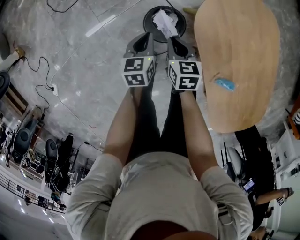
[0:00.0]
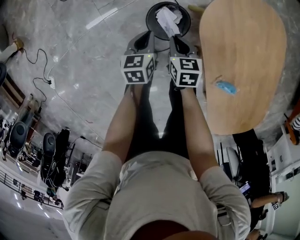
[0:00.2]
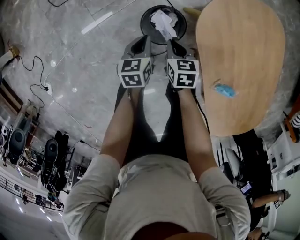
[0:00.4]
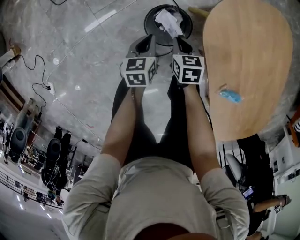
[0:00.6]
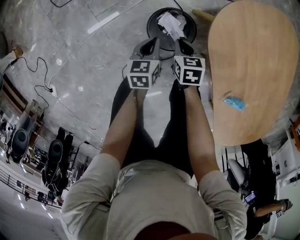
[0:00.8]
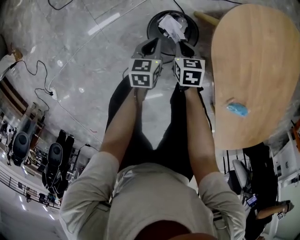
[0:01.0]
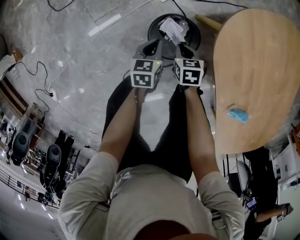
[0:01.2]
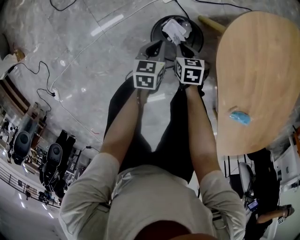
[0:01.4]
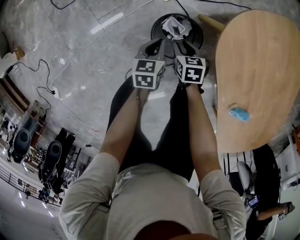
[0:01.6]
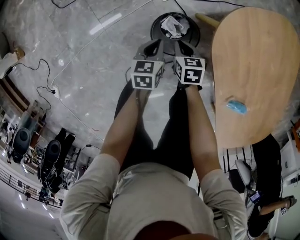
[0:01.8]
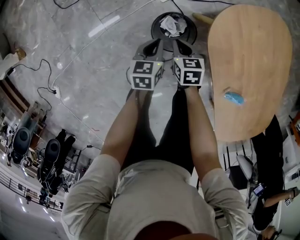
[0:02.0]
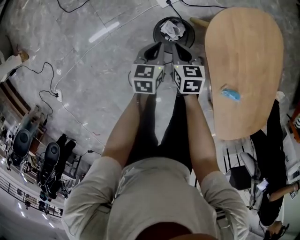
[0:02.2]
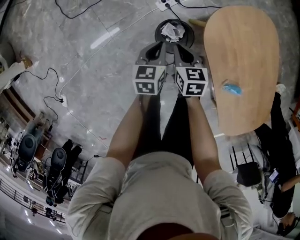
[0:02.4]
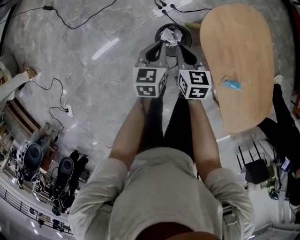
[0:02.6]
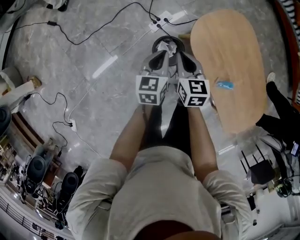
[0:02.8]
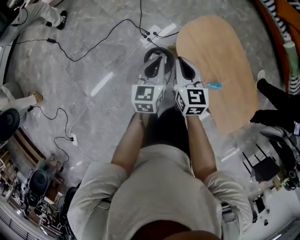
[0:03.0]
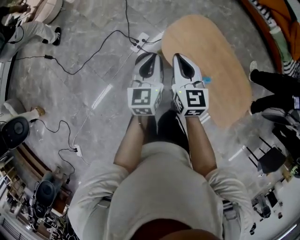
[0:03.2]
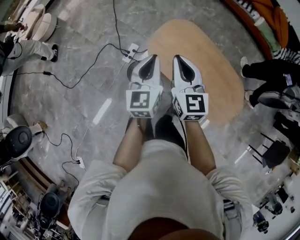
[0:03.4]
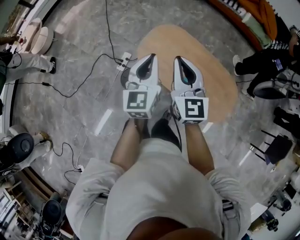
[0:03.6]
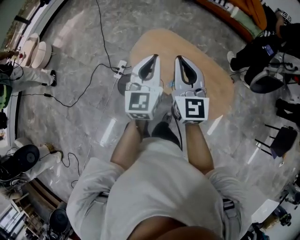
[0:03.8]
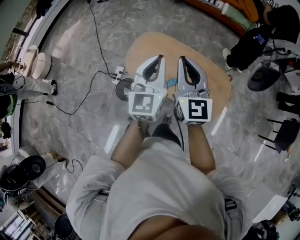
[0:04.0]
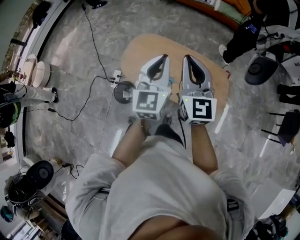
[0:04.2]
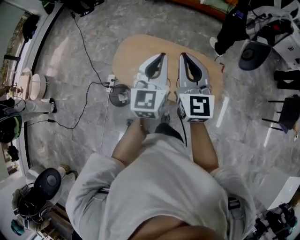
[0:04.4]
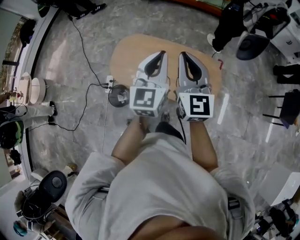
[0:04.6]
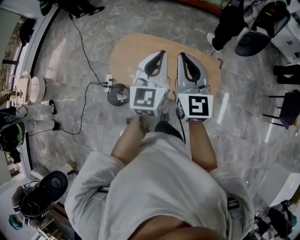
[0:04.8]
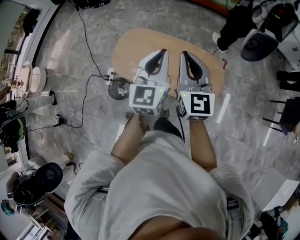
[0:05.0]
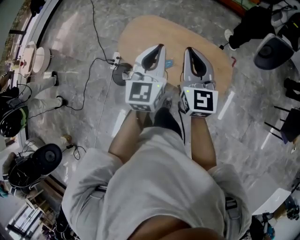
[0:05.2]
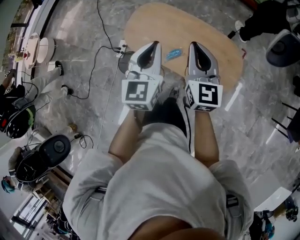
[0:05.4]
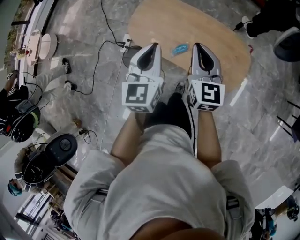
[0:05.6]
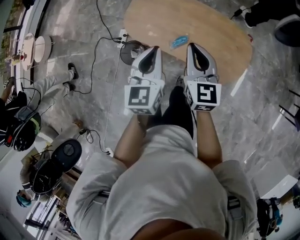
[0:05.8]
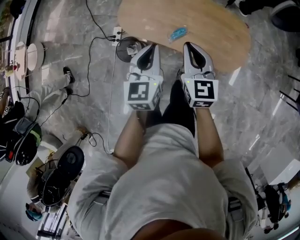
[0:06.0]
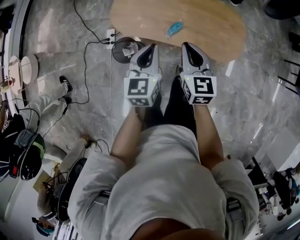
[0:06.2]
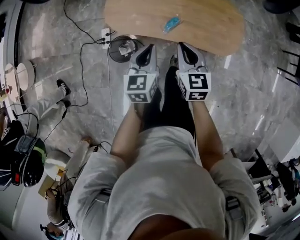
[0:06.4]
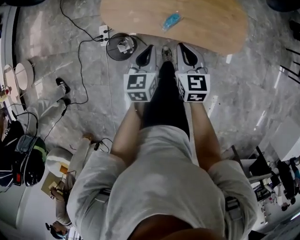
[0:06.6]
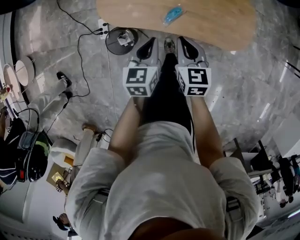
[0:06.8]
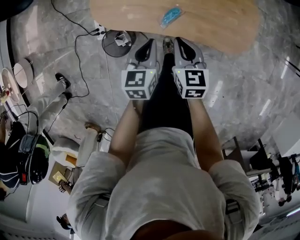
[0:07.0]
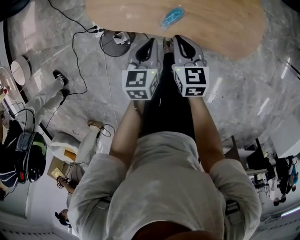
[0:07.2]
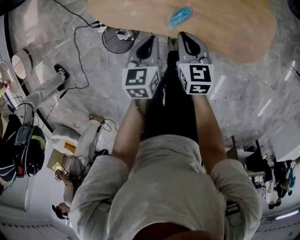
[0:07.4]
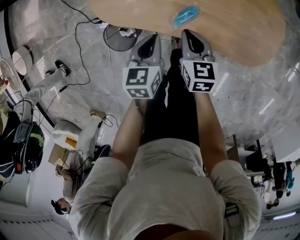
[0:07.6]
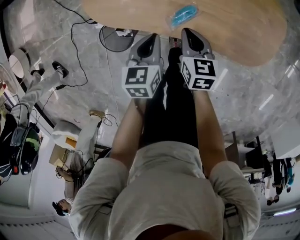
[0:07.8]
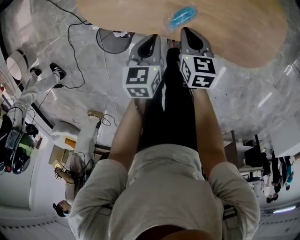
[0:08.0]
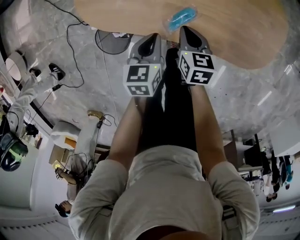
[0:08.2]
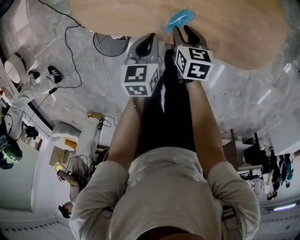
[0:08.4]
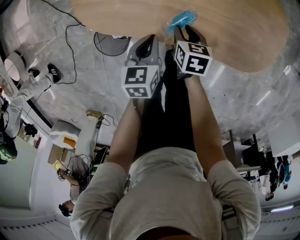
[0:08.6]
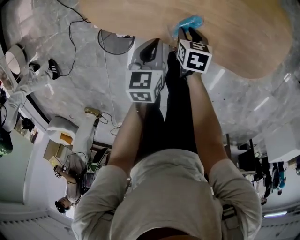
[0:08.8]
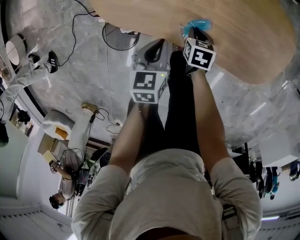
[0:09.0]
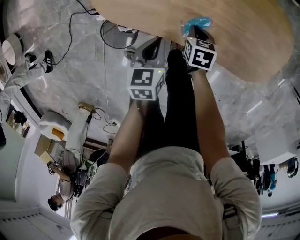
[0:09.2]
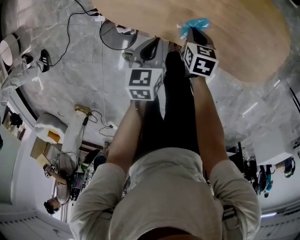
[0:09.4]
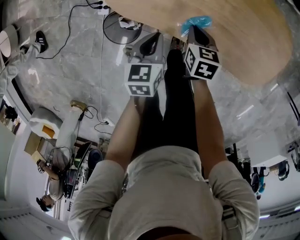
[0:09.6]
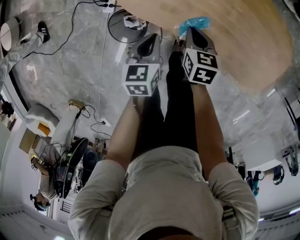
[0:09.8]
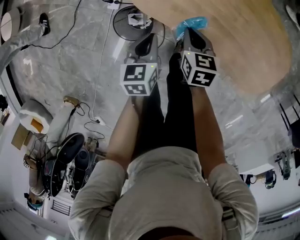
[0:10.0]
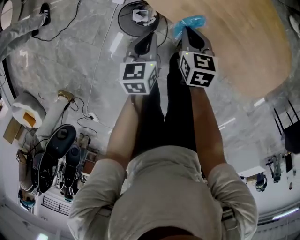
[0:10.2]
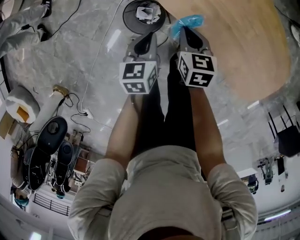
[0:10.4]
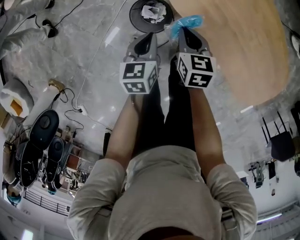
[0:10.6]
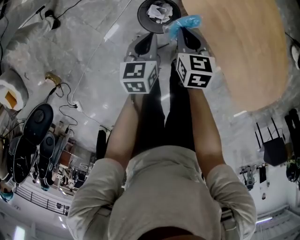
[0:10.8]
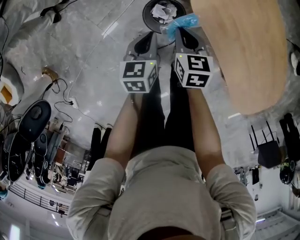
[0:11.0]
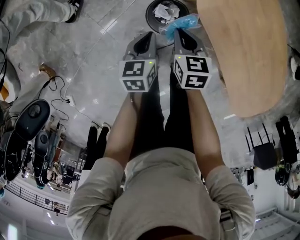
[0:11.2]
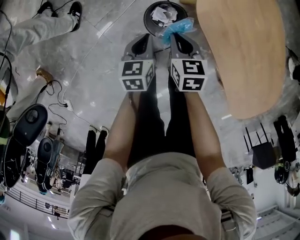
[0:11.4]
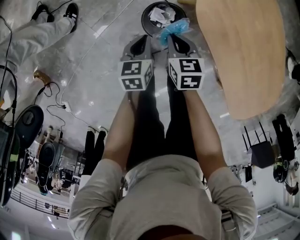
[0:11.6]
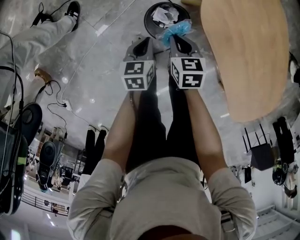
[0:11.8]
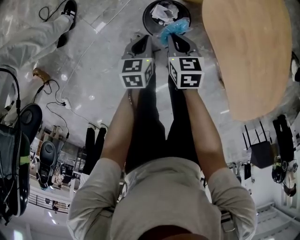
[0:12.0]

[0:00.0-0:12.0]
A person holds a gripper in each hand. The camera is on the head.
0:00.0 to 0:01.6: The grippers both shift downward by about 20 cm. The right gripper opens up.
0:01.6 to 0:03.0: Both grippers move upward, roughly 50 cm. The left gripper swivels some 30 degrees. Meanwhile the right gripper points its fingers approximately 30 degrees further upward, and closes up.
0:03.0 to 0:04.4: The two grippers travel together, roughly 50 cm. The right gripper swivels roughly 50 degrees, while the left gripper rotates approximately 40 degrees.
0:04.4 to 0:06.0: Both grippers move downward and to the left, approximately 25 cm. The right gripper swivels about 20 degrees, while the left gripper changes its angle by approximately 20 degrees.
0:06.0 to 0:07.6: The grippers both shift downward by approximately 30 cm. The left gripper swivels about 30 degrees. The right gripper turns by some 30 degrees.
0:07.6 to 0:09.0: The left gripper shifts approximately 5 cm downward. Meanwhile the right gripper heads downward, covering roughly 15 cm, swivels roughly 30 degrees, and opens, then closes once more.
0:09.0 to 0:10.4: The right gripper goes some 25 cm to the left and upward, and changes its angle by about 30 degrees. Meanwhile the left gripper goes roughly 20 cm to the left, and swivels approximately 30 degrees.
0:10.4 to 0:12.0: The two grippers go roughly 20 cm to the left and downward. The right gripper swivels approximately 20 degrees.

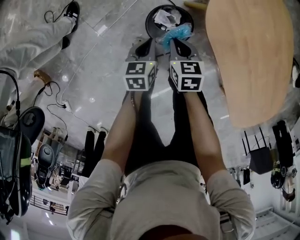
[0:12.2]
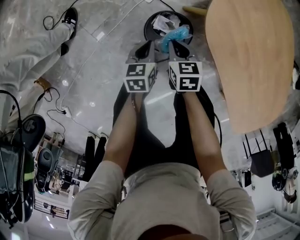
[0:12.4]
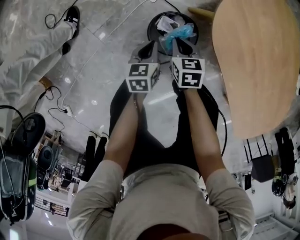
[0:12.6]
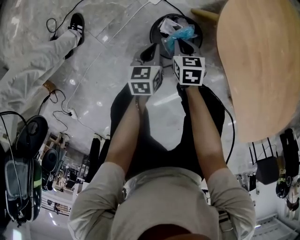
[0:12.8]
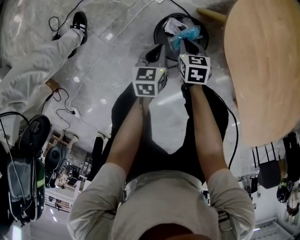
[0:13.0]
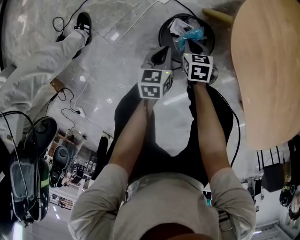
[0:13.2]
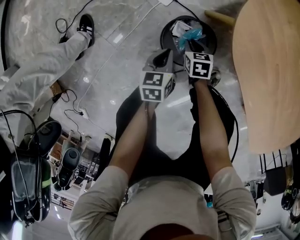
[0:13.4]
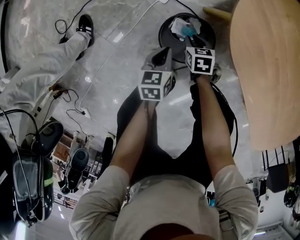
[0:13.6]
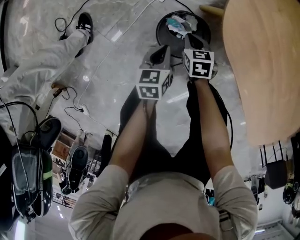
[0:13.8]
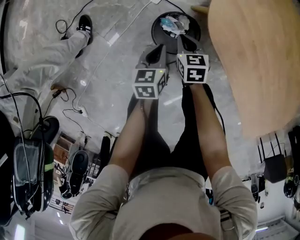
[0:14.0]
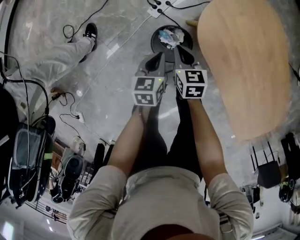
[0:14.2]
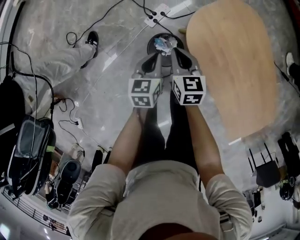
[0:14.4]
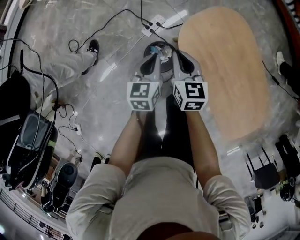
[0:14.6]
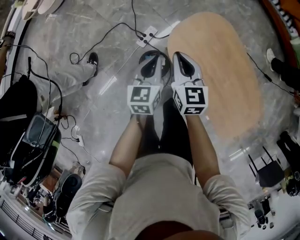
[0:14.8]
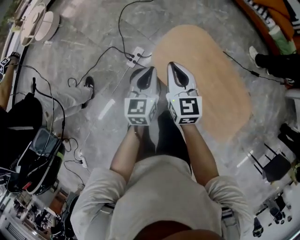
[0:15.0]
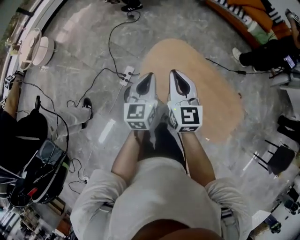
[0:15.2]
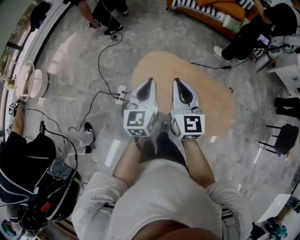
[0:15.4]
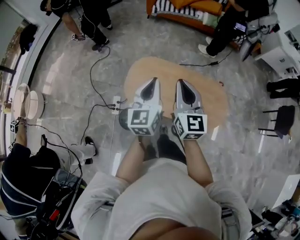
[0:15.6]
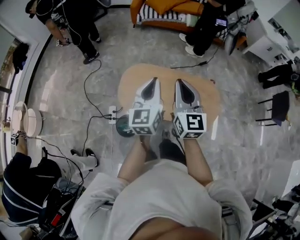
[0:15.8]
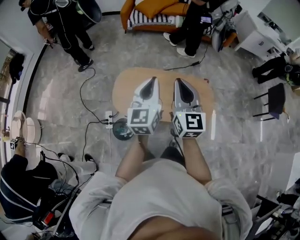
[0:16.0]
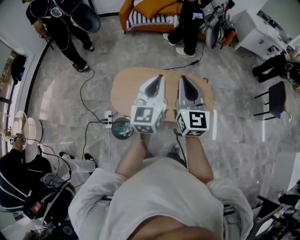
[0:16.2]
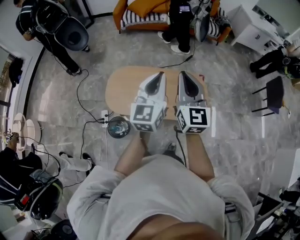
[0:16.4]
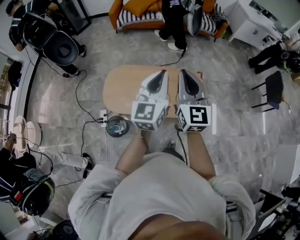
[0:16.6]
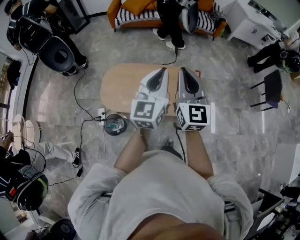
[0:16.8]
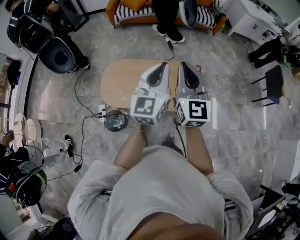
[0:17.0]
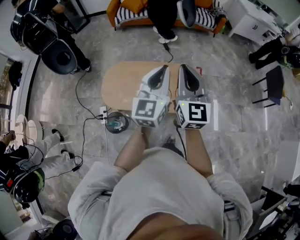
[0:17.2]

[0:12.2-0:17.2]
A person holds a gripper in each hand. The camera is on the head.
0:12.2 to 0:13.8: The right gripper shifts roughly 15 cm downward. The left gripper is displaced downward by some 5 cm.
0:13.8 to 0:15.6: The grippers both shift upward by roughly 80 cm. The right gripper tips its fingers upward by about 50 degrees, while the left gripper angles its fingers upward, by approximately 50 degrees.
0:15.6 to 0:17.2: Both grippers move to the right, about 30 cm. The left gripper swivels some 20 degrees.

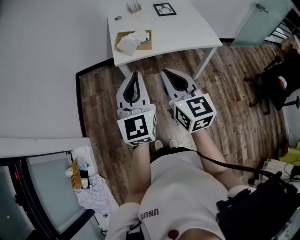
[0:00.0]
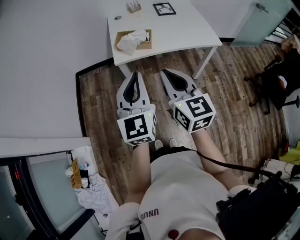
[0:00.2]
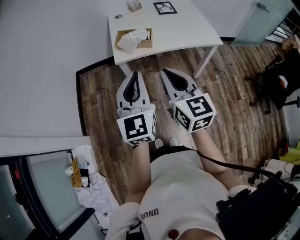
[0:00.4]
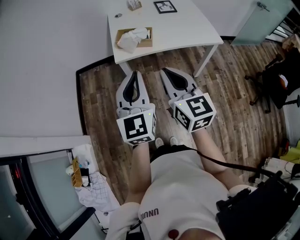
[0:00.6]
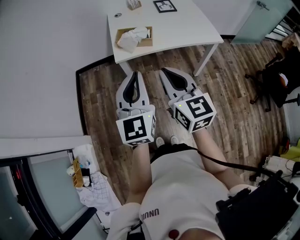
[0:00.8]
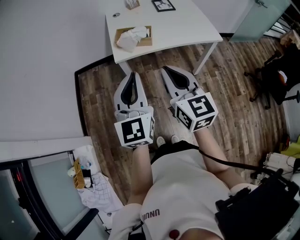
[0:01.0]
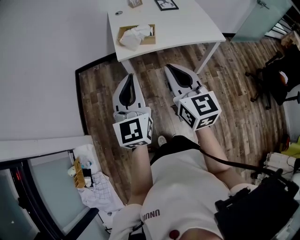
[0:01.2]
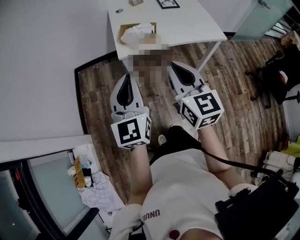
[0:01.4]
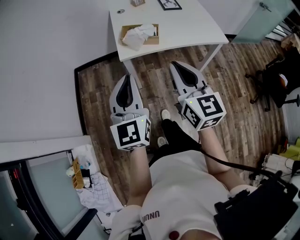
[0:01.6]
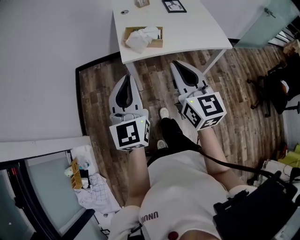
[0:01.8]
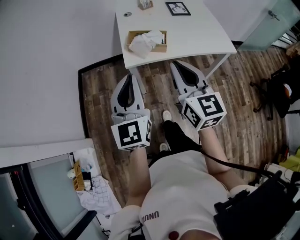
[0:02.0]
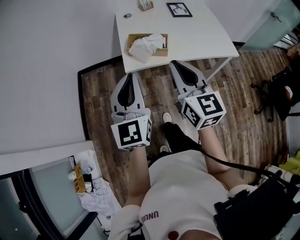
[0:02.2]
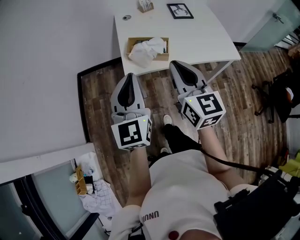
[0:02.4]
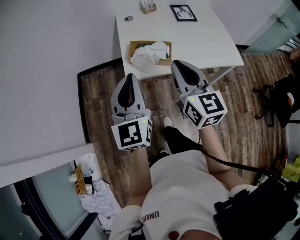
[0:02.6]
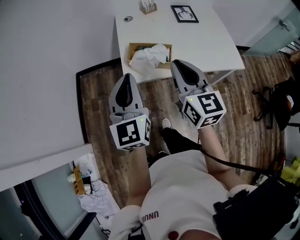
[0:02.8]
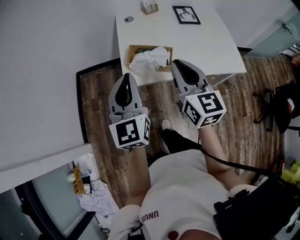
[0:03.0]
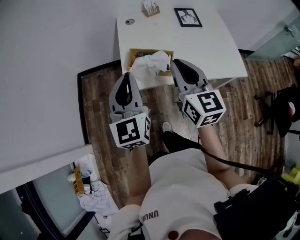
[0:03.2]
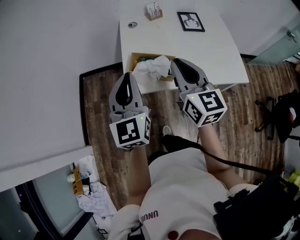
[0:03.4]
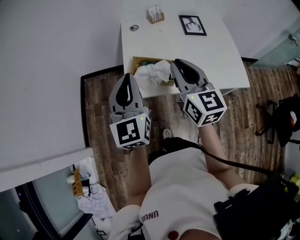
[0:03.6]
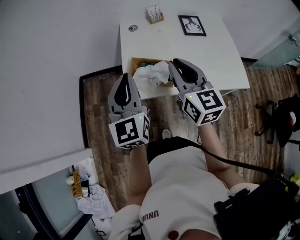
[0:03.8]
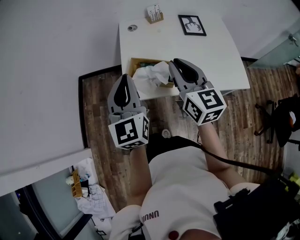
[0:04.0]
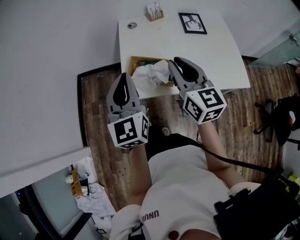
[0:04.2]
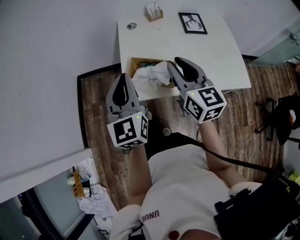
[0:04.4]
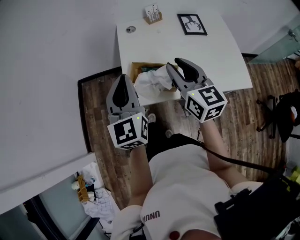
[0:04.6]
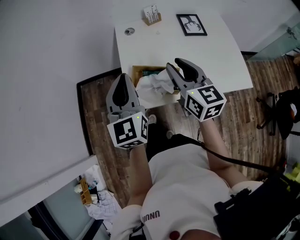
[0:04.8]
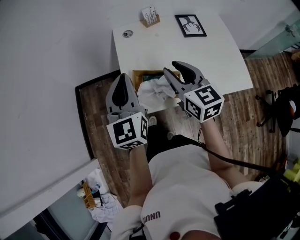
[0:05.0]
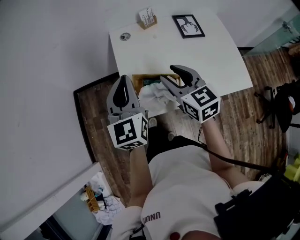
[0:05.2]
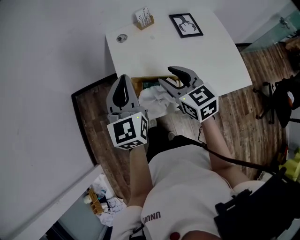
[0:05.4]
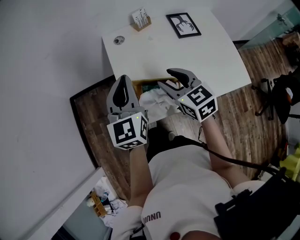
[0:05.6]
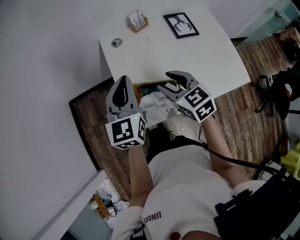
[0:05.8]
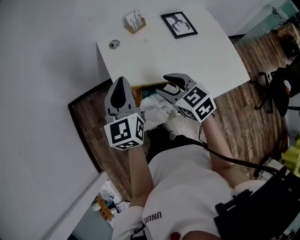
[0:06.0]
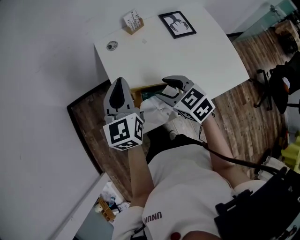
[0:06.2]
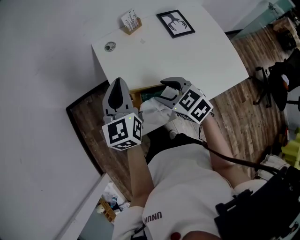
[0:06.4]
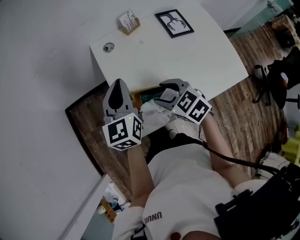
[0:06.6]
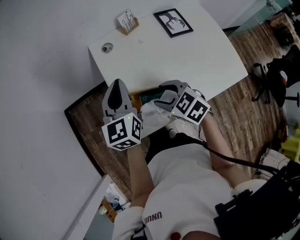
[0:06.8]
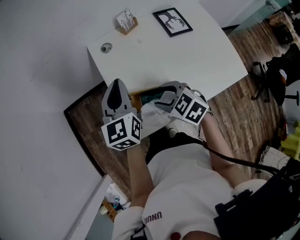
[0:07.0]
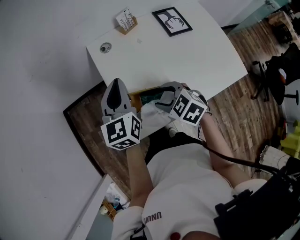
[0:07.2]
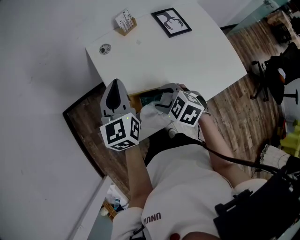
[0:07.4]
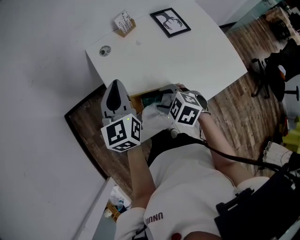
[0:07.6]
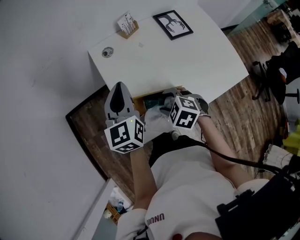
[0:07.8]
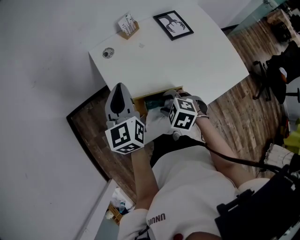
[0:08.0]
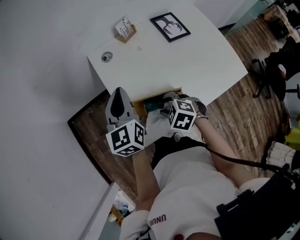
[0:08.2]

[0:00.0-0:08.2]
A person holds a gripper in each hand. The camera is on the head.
0:00.0 to 0:01.6: The left gripper is displaced to the left by about 5 cm.
0:01.6 to 0:03.2: Both grippers move forward, roughly 25 cm.
0:03.2 to 0:05.0: Both grippers travel together forward, approximately 15 cm. The right gripper opens its fingers.
0:05.0 to 0:06.6: The left gripper travels forward and downward by approximately 15 cm, while the right gripper goes approximately 10 cm downward, turns by some 30 degrees, and opens up.
0:06.6 to 0:08.2: The right gripper shifts approximately 10 cm downward, and rotates about 20 degrees.
